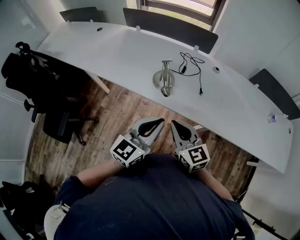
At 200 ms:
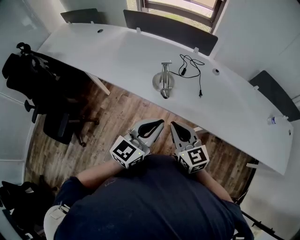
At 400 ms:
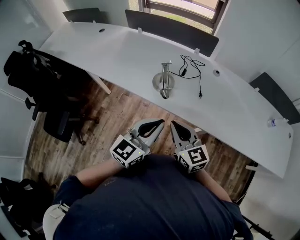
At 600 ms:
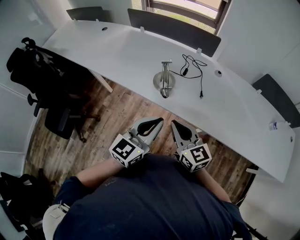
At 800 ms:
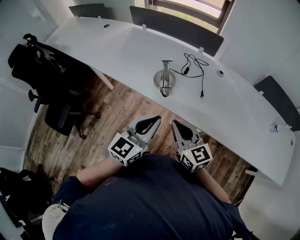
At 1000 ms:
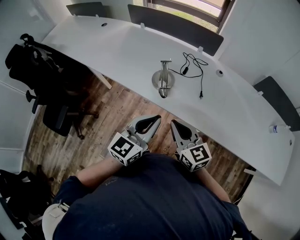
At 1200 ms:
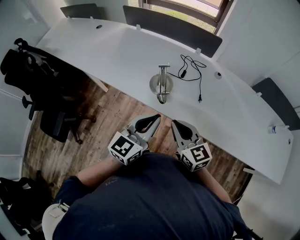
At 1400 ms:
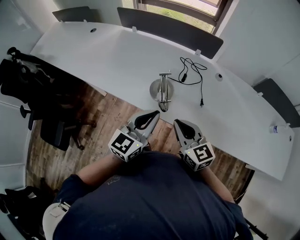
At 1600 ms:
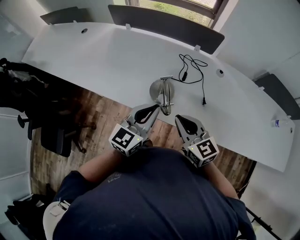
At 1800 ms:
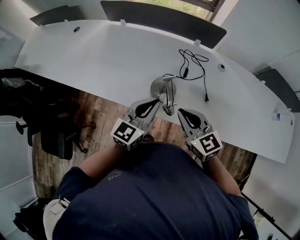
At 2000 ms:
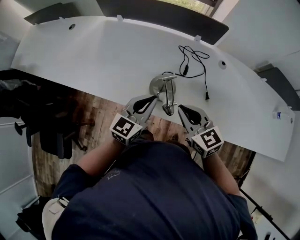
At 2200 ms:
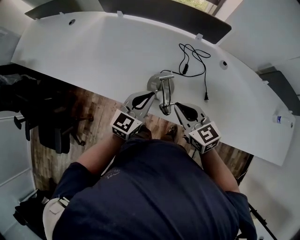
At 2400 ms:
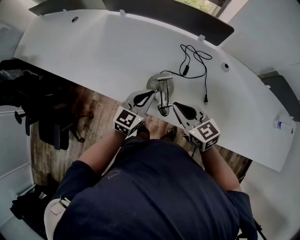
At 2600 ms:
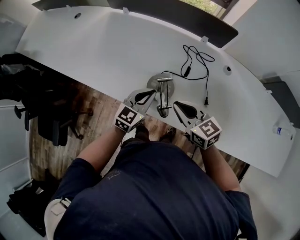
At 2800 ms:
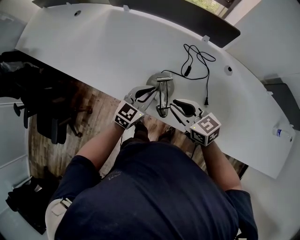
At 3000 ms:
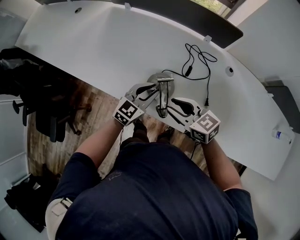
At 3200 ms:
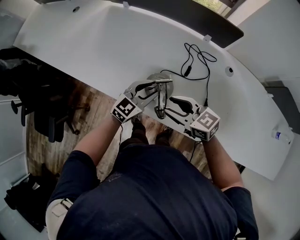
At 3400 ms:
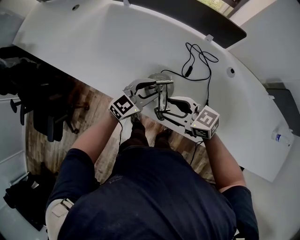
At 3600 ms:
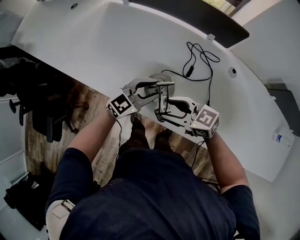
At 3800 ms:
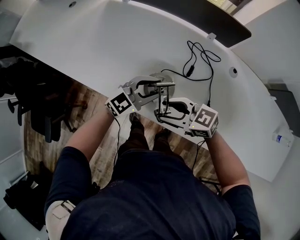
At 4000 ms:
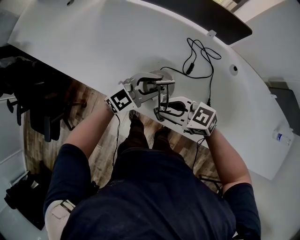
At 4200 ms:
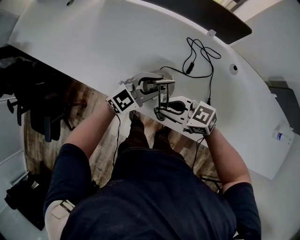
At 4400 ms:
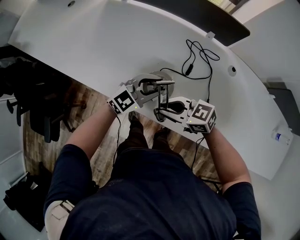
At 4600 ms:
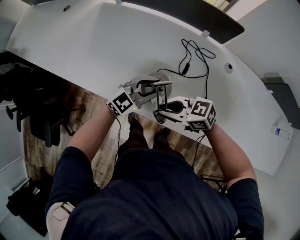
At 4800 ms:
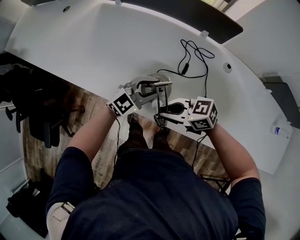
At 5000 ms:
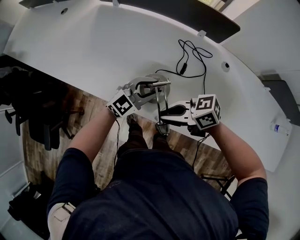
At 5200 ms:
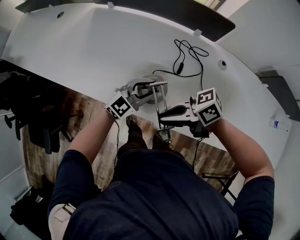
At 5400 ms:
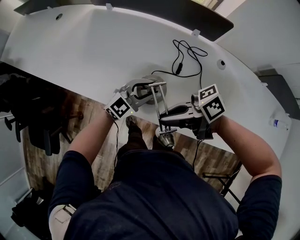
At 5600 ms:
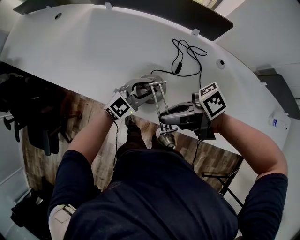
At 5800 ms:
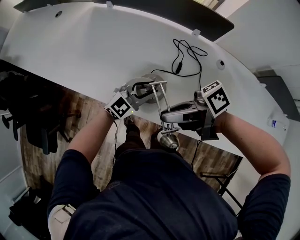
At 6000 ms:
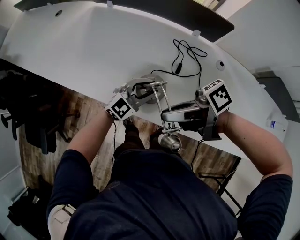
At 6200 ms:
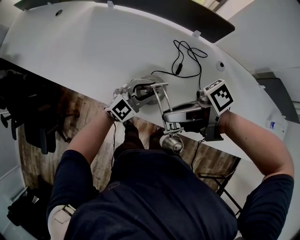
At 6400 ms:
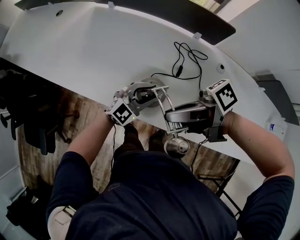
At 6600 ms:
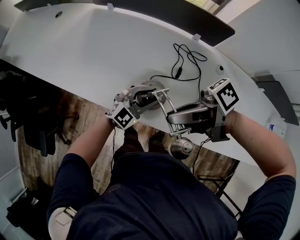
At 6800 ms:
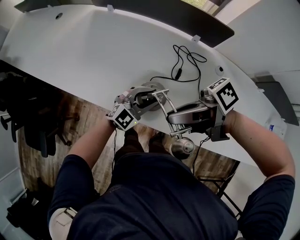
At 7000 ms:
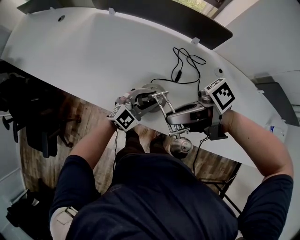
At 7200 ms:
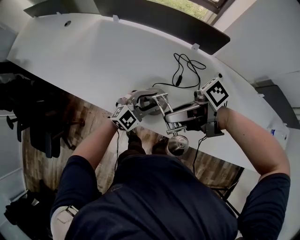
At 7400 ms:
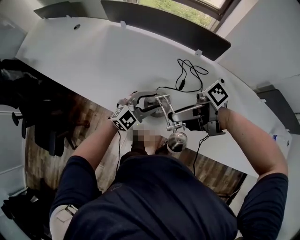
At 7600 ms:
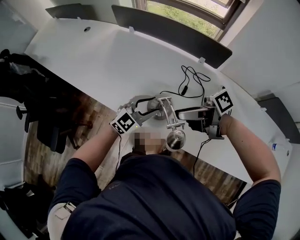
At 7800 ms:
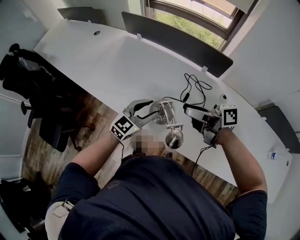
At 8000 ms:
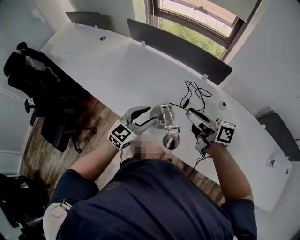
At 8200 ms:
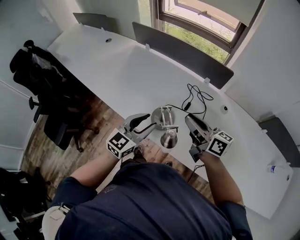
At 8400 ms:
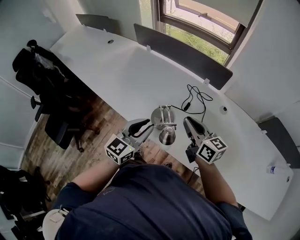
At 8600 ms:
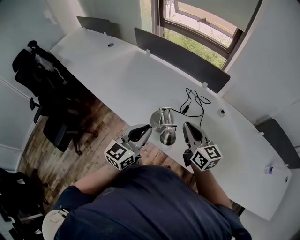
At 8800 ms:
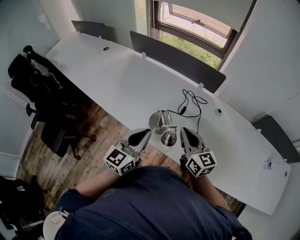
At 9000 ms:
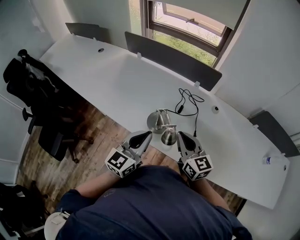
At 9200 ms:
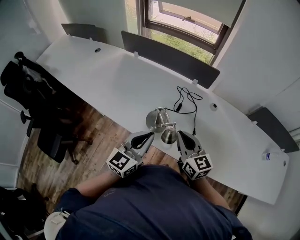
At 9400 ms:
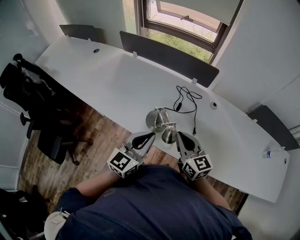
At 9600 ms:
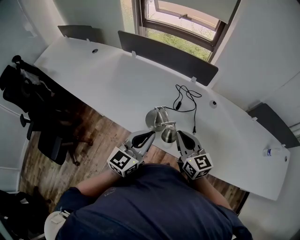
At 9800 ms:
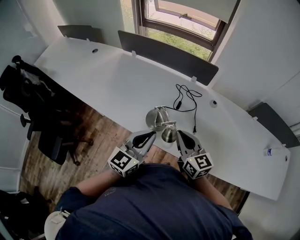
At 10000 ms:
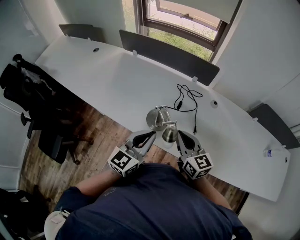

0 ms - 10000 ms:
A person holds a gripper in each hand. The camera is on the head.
0 ms - 1400 ms: Both grippers move forward, roughly 10 cm.
1400 ms - 2800 ms: The grippers both shift forward and downward by some 20 cm. The right gripper rotates roughly 20 degrees.
2800 ms - 4200 ms: The right gripper shifts by approximately 5 cm, changes its angle by about 30 degrees, and opens, then closes once more. Meanwhile the left gripper turns by approximately 20 degrees, and opens.
4200 ms - 5800 ms: The right gripper heads upward, covering some 10 cm, and twists about 50 degrees clockwise, seen from behind.
5800 ms - 7200 ms: The grippers stay close to where they were, moving slightly.
7200 ms - 8600 ms: The left gripper goes roughly 15 cm upward, turns by roughly 50 degrees, and closes its fingers, while the right gripper changes place by approximately 10 cm, turns by roughly 80 degrees, and closes up.
8600 ms - 10000 ms: The right gripper goes roughly 5 cm backward.

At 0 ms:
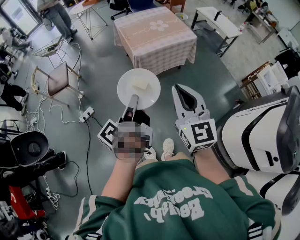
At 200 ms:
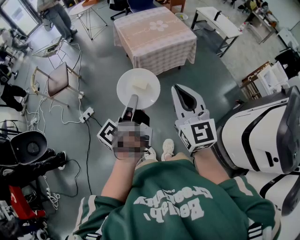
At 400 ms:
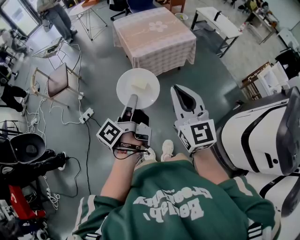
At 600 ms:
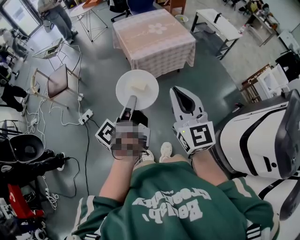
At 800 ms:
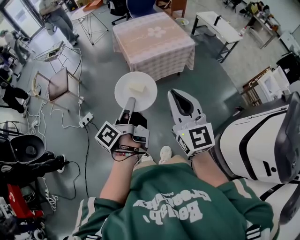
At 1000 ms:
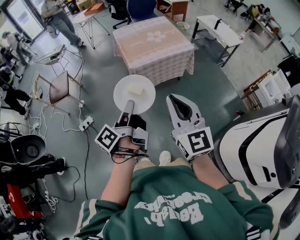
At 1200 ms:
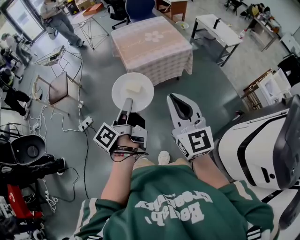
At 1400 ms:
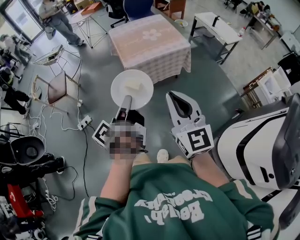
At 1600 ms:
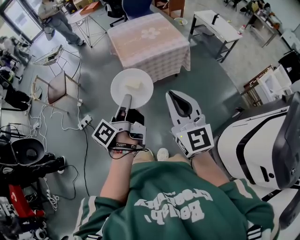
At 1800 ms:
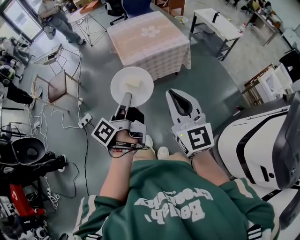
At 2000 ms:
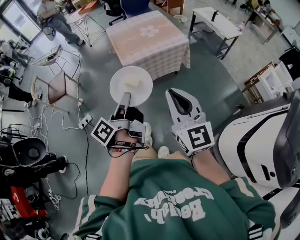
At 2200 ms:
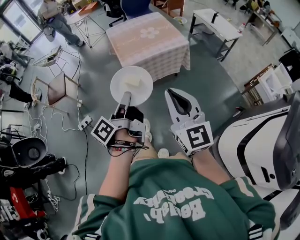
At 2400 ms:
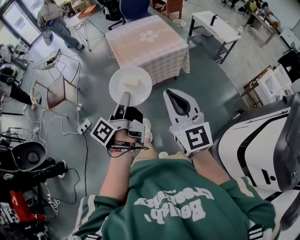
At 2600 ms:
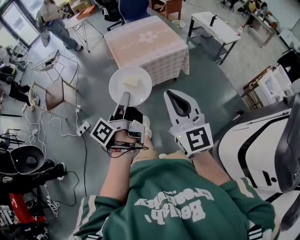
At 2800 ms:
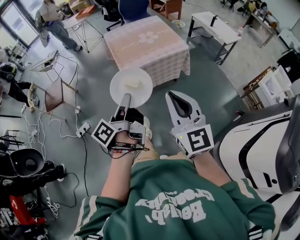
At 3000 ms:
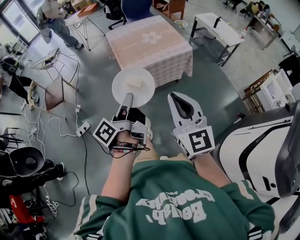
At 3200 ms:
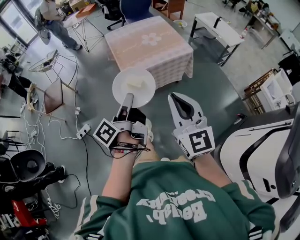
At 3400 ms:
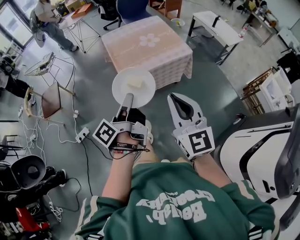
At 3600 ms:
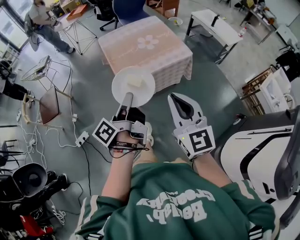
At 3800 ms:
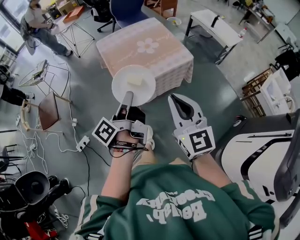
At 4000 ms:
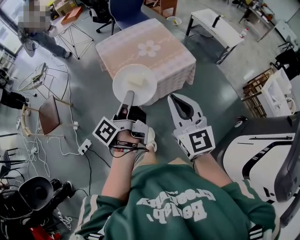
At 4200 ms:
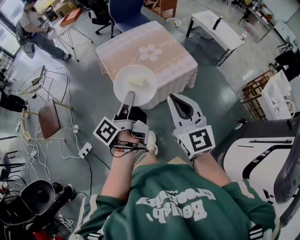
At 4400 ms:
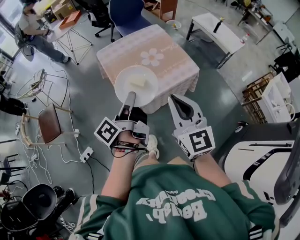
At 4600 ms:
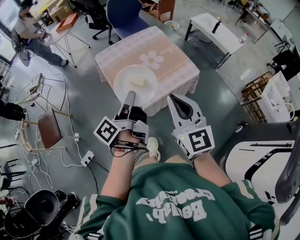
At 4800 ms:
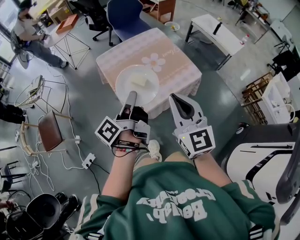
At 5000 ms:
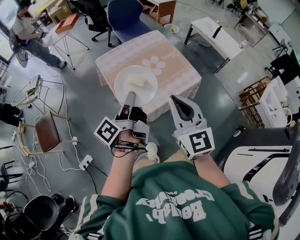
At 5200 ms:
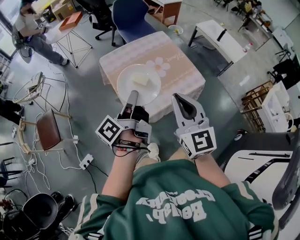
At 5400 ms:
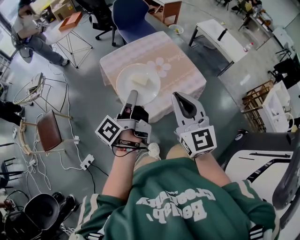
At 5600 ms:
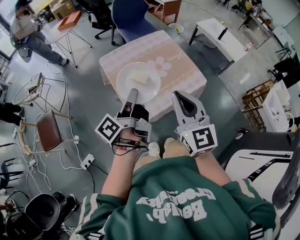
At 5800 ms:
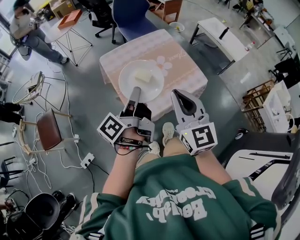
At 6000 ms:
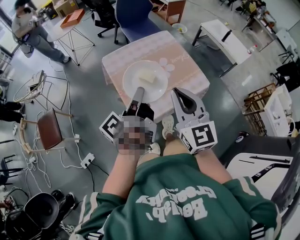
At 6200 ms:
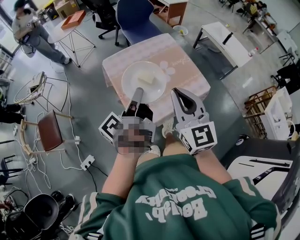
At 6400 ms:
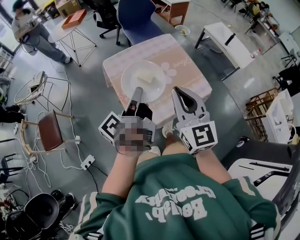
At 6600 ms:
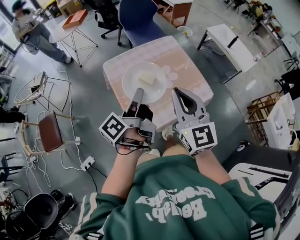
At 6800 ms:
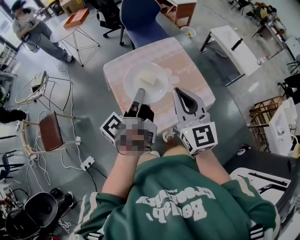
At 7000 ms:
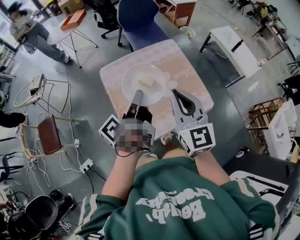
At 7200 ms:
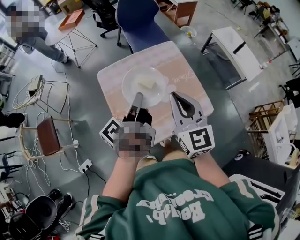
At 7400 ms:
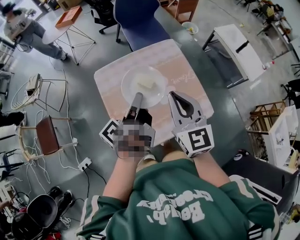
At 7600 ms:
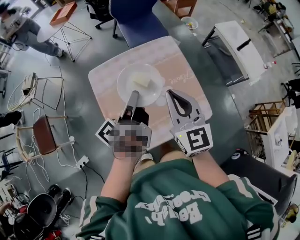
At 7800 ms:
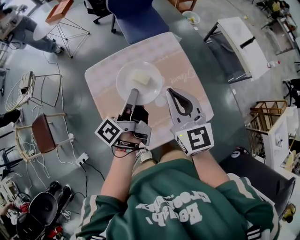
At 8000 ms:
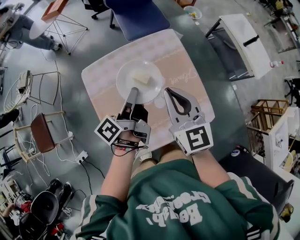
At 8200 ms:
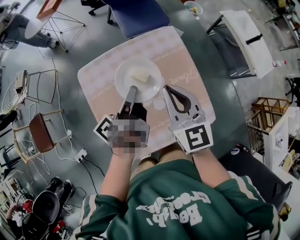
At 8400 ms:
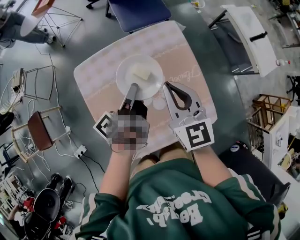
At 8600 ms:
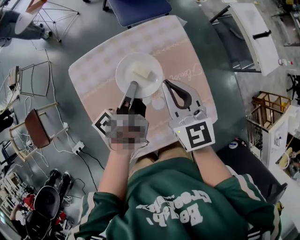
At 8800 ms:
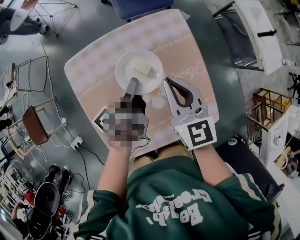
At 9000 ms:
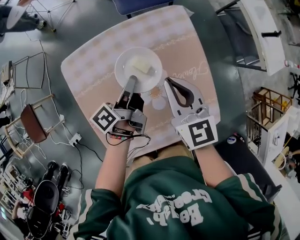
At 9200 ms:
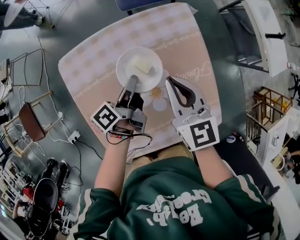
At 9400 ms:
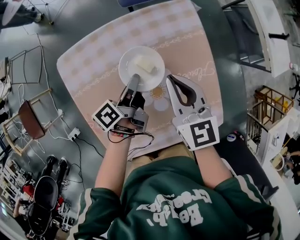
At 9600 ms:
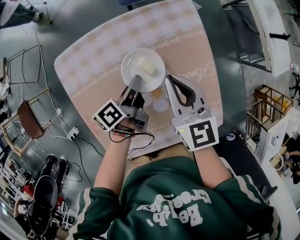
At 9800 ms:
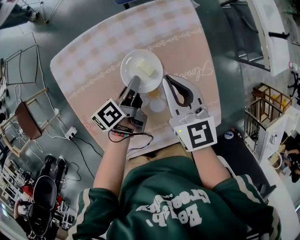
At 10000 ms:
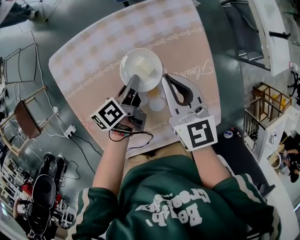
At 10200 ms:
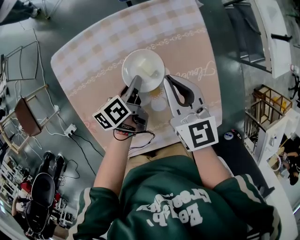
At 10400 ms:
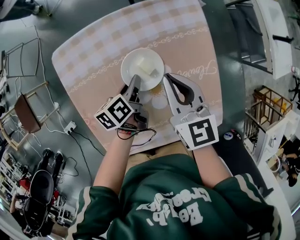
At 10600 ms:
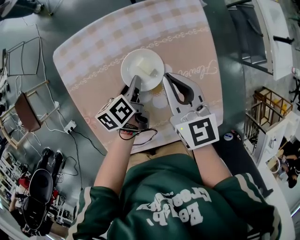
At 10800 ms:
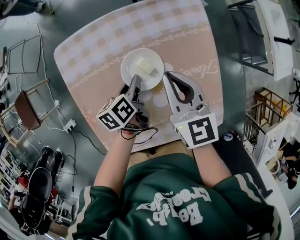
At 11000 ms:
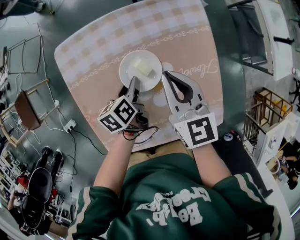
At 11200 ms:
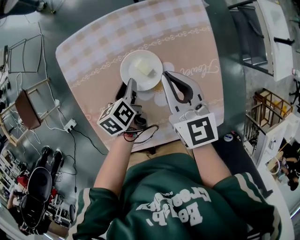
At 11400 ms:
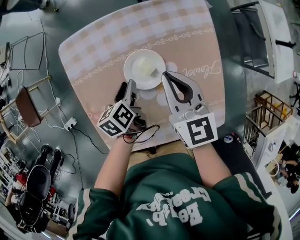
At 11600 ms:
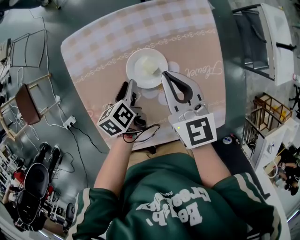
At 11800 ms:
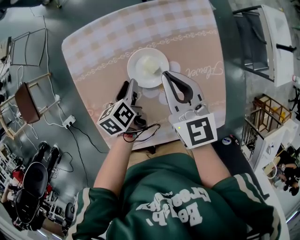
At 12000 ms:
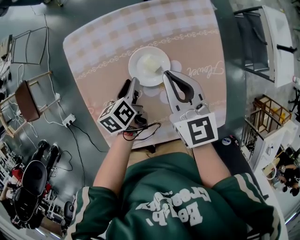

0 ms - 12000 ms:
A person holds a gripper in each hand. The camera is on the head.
0 ms - 1600 ms: Both grippers travel together to the right, about 10 cm.
1600 ms - 3000 ms: Both grippers move forward, approximately 5 cm.
3000 ms - 4400 ms: The grippers both shift forward by some 30 cm.
4400 ms - 6000 ms: The two grippers go about 10 cm forward.
6000 ms - 7600 ms: The two grippers go about 25 cm forward.
7600 ms - 9000 ms: The grippers both shift downward and forward by approximately 25 cm.
9000 ms - 10400 ms: The left gripper travels downward by some 10 cm, and rotates approximately 30 degrees. The right gripper ends up approximately 5 cm from where it was.
10400 ms - 12000 ms: The left gripper shifts roughly 5 cm to the left, and opens.

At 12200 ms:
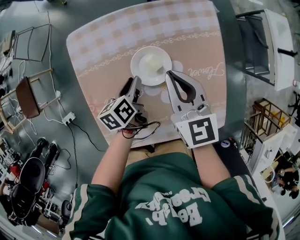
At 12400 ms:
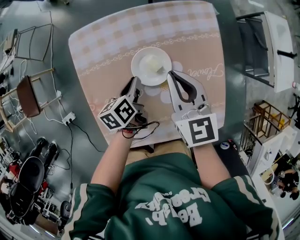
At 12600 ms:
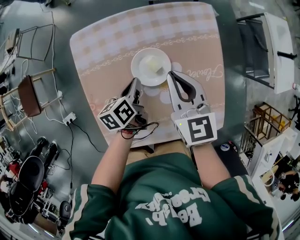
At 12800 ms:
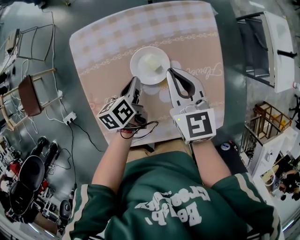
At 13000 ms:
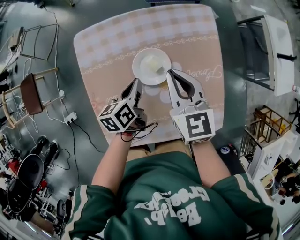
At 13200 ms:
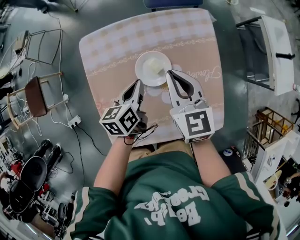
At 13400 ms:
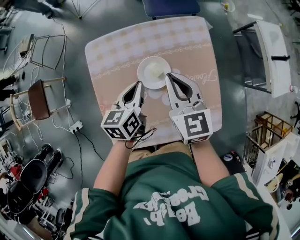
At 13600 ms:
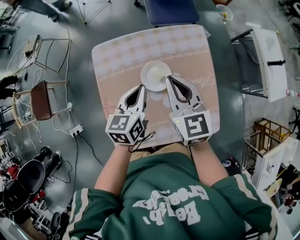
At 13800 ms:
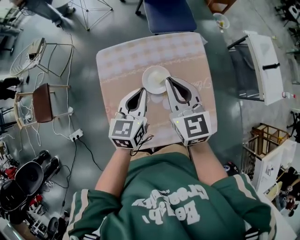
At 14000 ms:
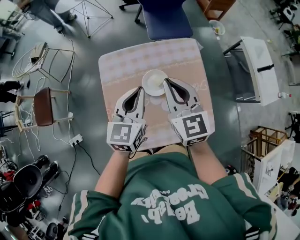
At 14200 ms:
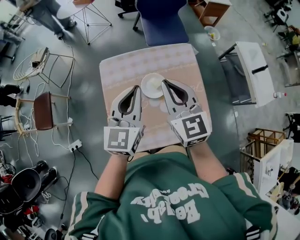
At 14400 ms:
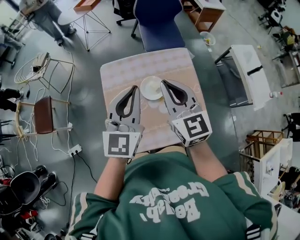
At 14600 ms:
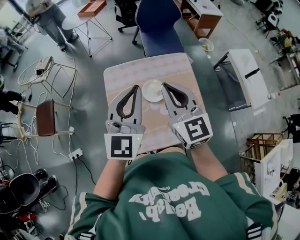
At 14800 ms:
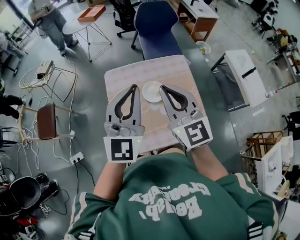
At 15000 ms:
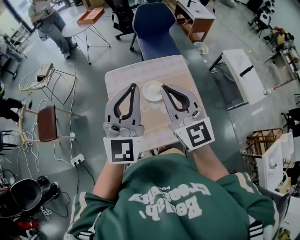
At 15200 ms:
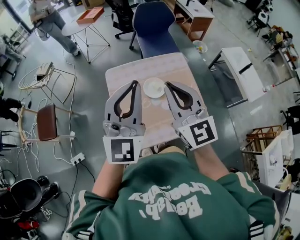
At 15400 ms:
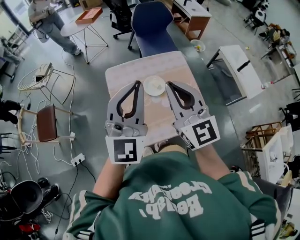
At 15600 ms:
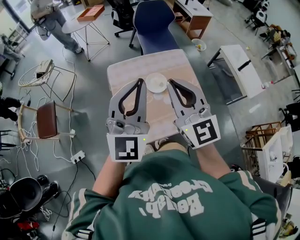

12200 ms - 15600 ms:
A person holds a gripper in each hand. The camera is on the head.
12200 ms - 13800 ms: The left gripper shifts roughly 20 cm upward, twists roughly 40 degrees clockwise, seen from behind, and closes up. Meanwhile the right gripper goes approximately 15 cm upward.
13800 ms - 15600 ms: Both grippers travel together upward and backward, roughly 30 cm. The right gripper swivels approximately 30 degrees. Meanwhile the left gripper points its fingers some 40 degrees further upward.
